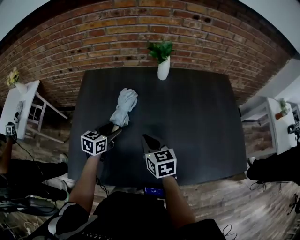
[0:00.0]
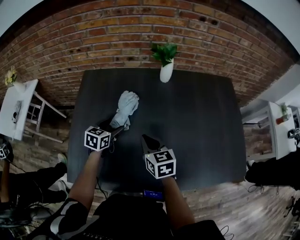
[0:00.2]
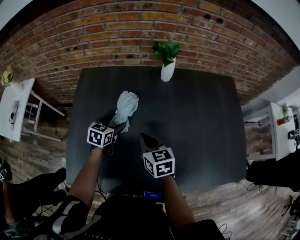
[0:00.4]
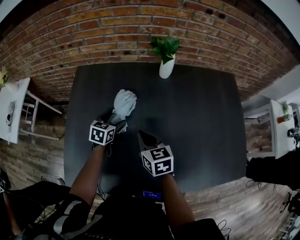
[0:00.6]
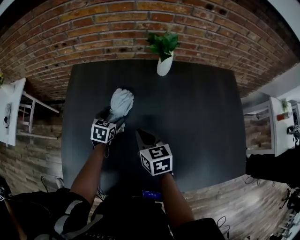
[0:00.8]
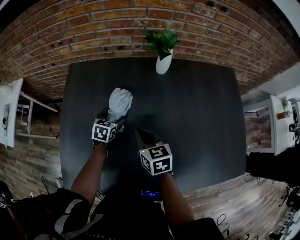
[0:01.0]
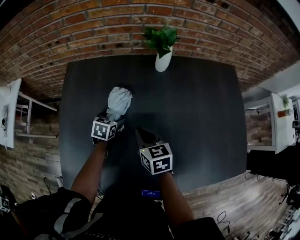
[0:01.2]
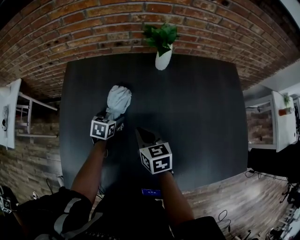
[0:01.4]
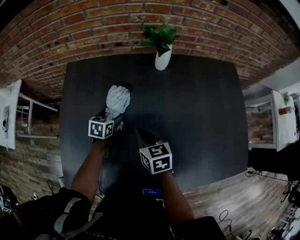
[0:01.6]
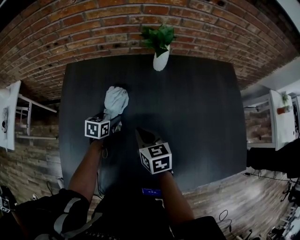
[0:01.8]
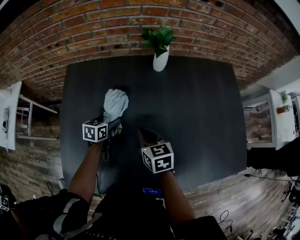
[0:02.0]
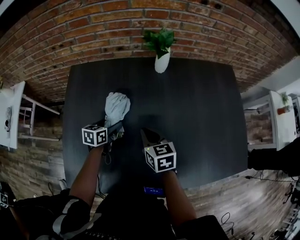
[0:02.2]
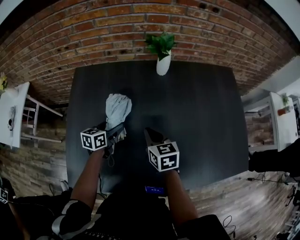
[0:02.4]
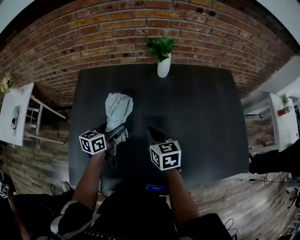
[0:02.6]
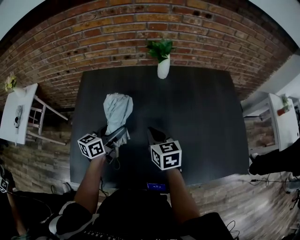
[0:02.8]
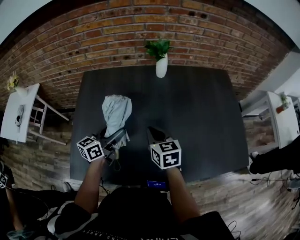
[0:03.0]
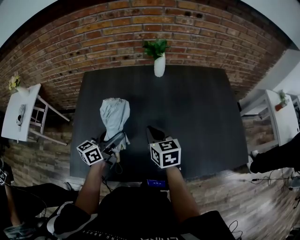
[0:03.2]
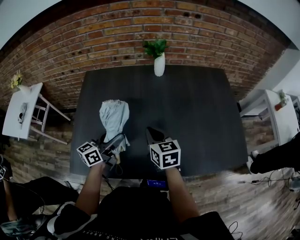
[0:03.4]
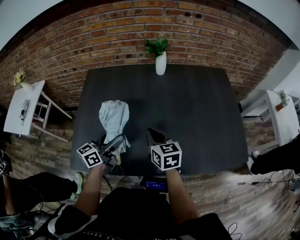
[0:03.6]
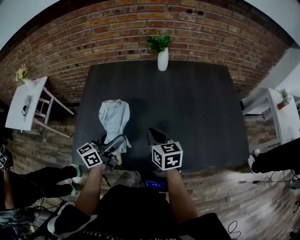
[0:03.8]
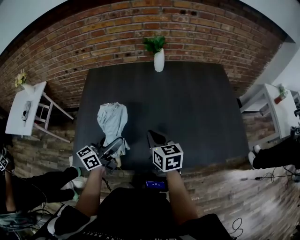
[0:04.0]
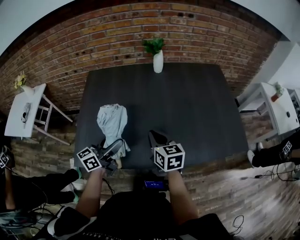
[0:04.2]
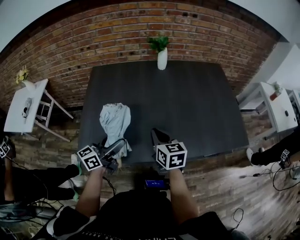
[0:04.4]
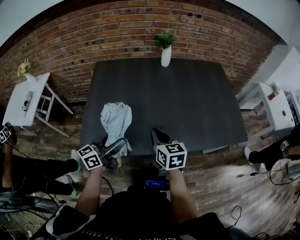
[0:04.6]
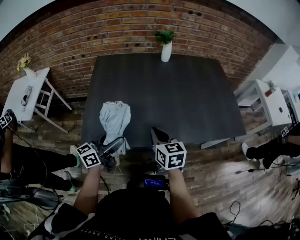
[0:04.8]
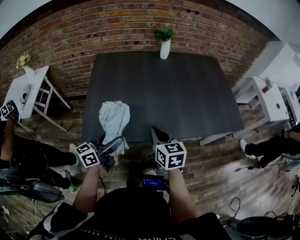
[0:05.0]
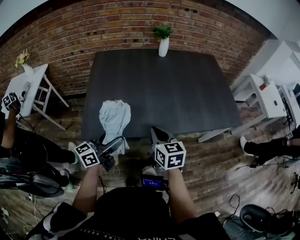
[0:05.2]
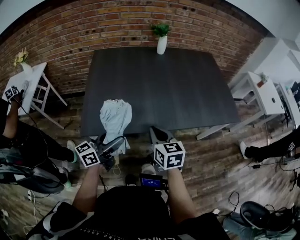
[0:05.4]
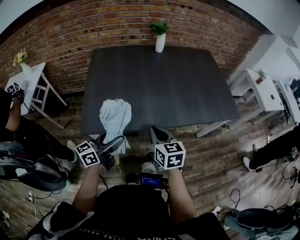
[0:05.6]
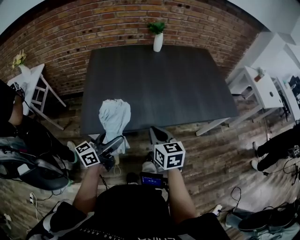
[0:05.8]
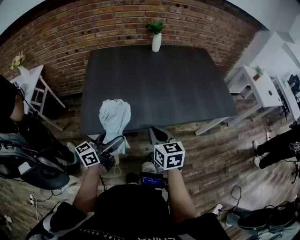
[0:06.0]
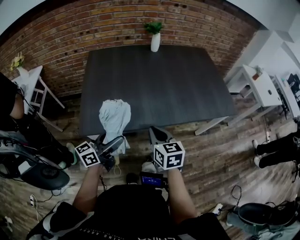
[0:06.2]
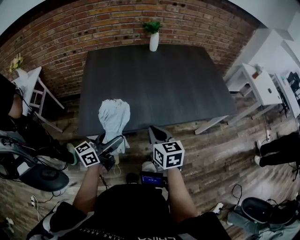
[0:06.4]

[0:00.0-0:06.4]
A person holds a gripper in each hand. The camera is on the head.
0.0 to 1.6 s: Both grippers travel together forward and downward, approximately 15 cm.
1.6 to 3.2 s: The left gripper shifts about 25 cm upward and backward, and tilts its fingers approximately 50 degrees upward. Meanwhile the right gripper shifts about 15 cm backward, upward and to the right.
3.2 to 4.8 s: Both grippers travel together backward, roughly 25 cm.
4.8 to 6.4 s: The two grippers go approximately 10 cm backward.

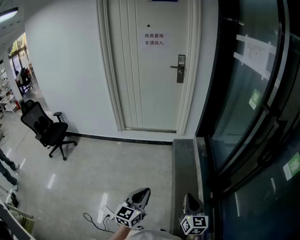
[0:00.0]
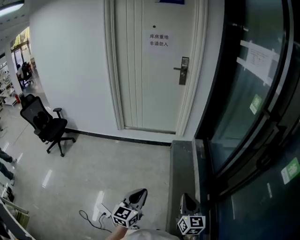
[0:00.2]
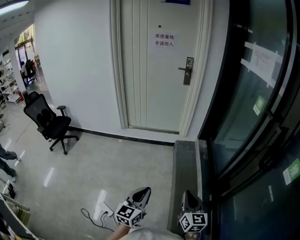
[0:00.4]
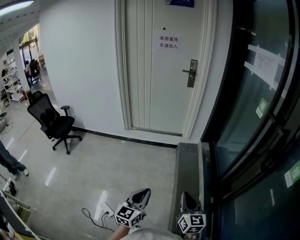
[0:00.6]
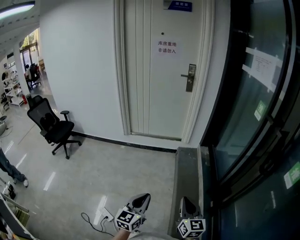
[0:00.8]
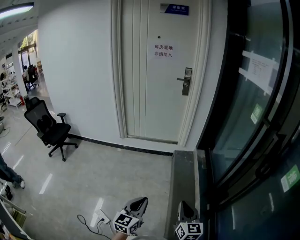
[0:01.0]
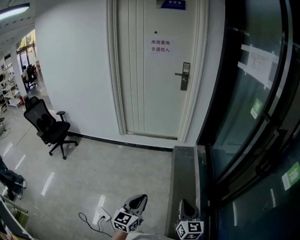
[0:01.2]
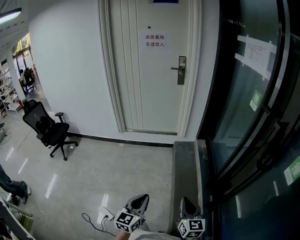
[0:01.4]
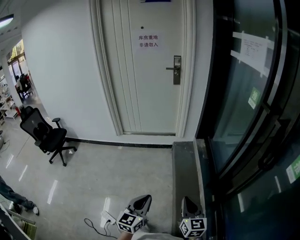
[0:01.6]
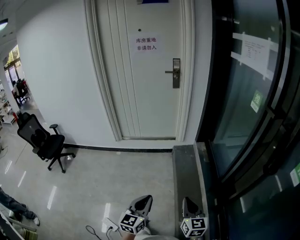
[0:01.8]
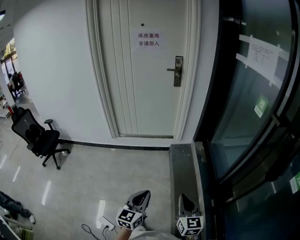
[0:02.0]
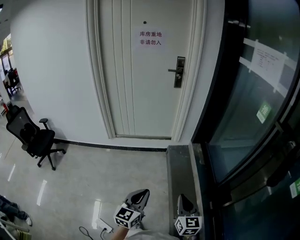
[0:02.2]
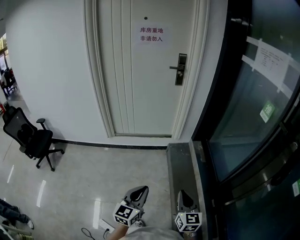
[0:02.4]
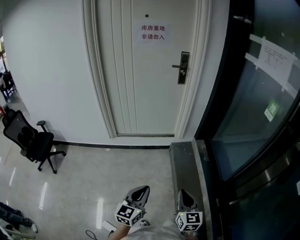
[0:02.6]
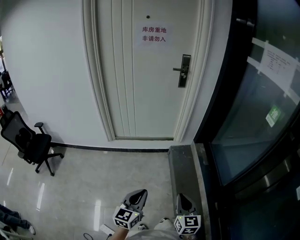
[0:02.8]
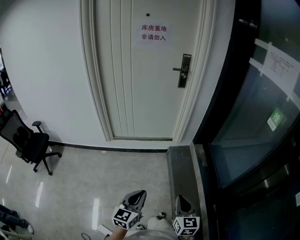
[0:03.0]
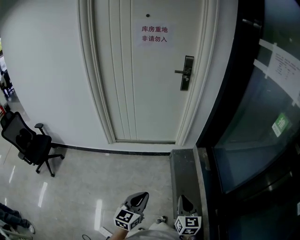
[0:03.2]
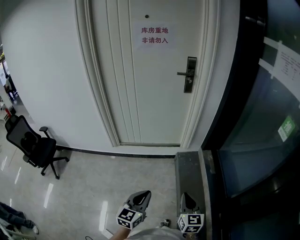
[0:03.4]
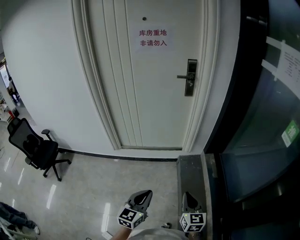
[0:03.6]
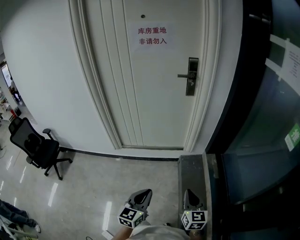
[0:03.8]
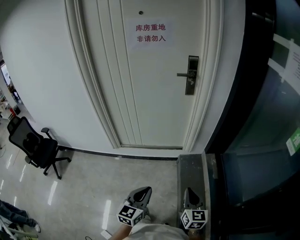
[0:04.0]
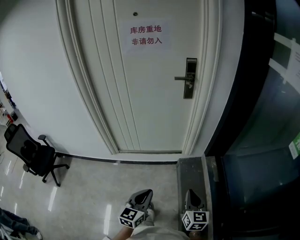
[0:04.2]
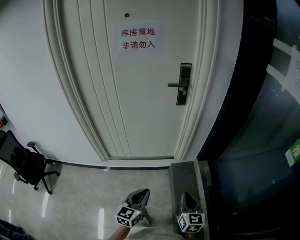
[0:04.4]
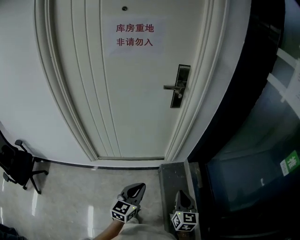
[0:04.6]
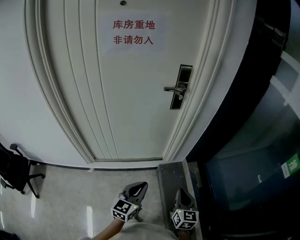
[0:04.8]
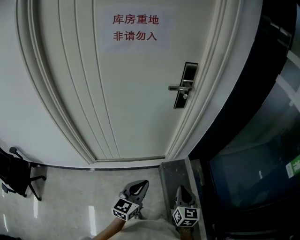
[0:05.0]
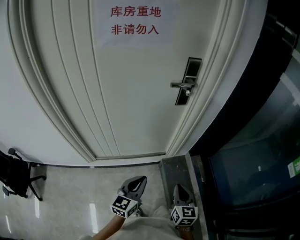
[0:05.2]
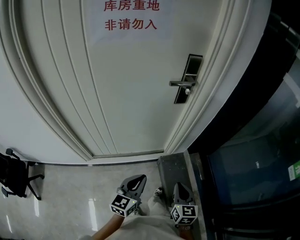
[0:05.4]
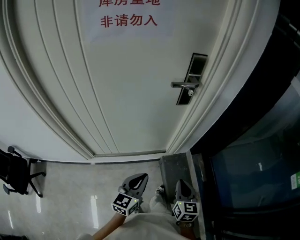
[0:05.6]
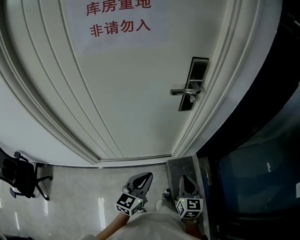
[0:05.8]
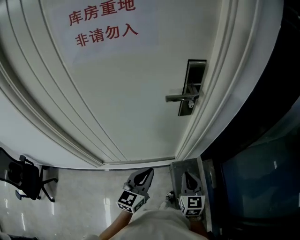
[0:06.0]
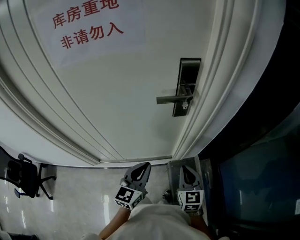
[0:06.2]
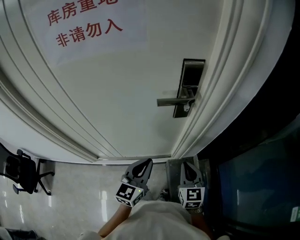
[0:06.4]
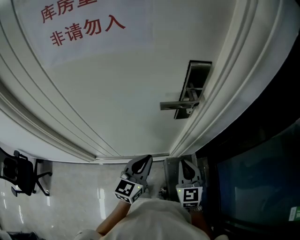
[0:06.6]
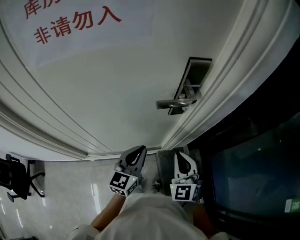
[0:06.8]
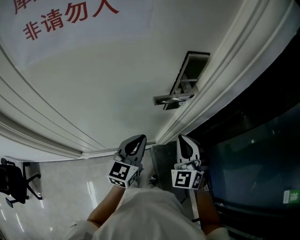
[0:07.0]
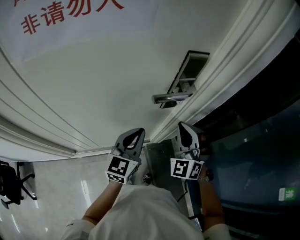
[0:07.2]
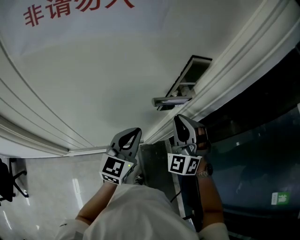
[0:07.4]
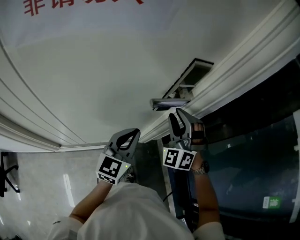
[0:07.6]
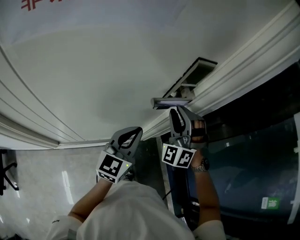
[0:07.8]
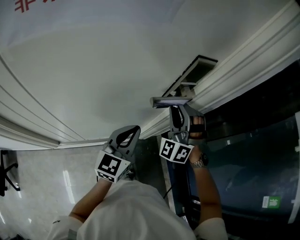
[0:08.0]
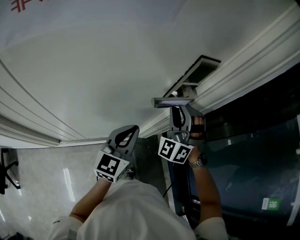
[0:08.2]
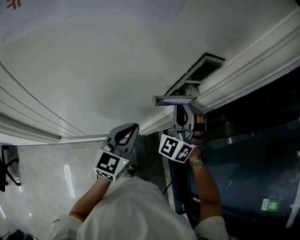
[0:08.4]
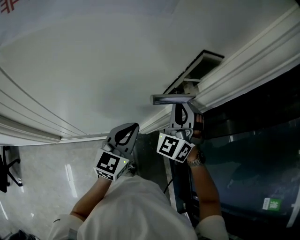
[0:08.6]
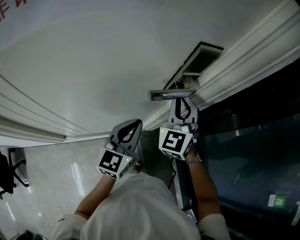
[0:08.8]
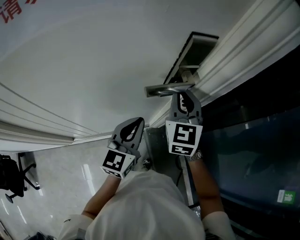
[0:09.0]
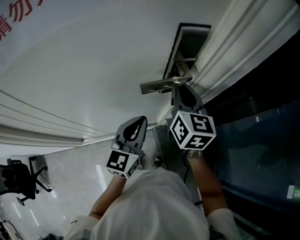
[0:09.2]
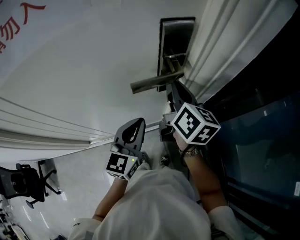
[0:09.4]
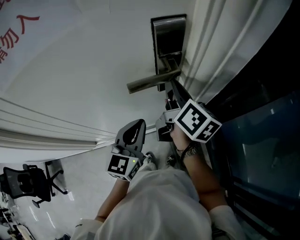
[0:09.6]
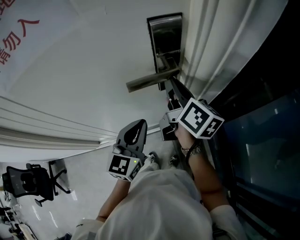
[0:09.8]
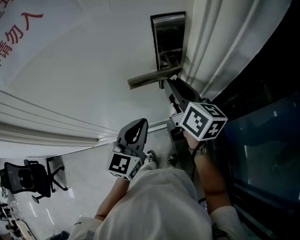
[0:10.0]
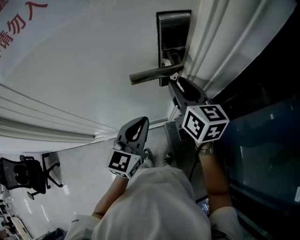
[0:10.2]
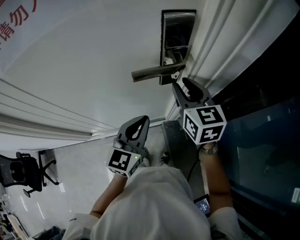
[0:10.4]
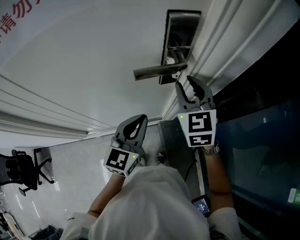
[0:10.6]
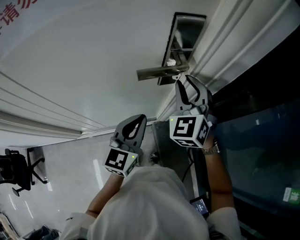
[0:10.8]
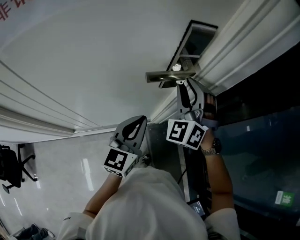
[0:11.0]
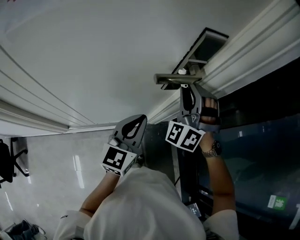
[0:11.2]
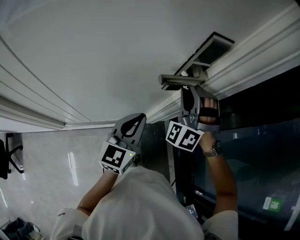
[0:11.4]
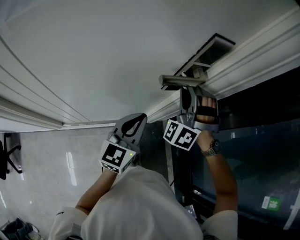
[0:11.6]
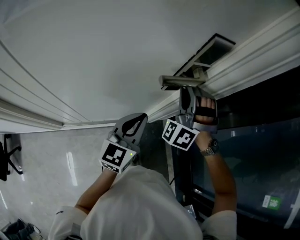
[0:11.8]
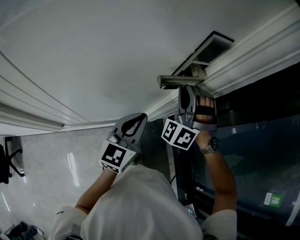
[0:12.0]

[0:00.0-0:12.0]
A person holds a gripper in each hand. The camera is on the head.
0.0 to 1.6 s: The grippers stay close to where they were, moving slightly.
1.6 to 3.0 s: The two grippers go roughly 30 cm forward and to the left.
3.0 to 4.4 s: Both grippers travel together forward, approximately 30 cm.
4.4 to 6.0 s: The two grippers go some 35 cm forward.
6.0 to 7.6 s: The right gripper goes about 25 cm forward and upward, rolls counterclockwise, seen from behind, by roughly 70 degrees, and opens up, while the left gripper travels forward by approximately 20 cm.
7.6 to 9.0 s: The right gripper twists roughly 60 degrees clockwise, seen from behind, and closes up.
9.0 to 10.4 s: The right gripper rotates about 30 degrees, and opens up.
10.4 to 12.0 s: The right gripper twists some 90 degrees counterclockwise, seen from behind.

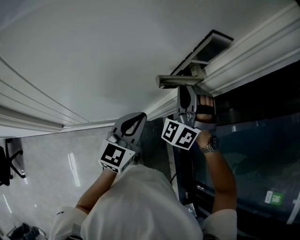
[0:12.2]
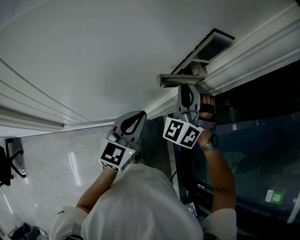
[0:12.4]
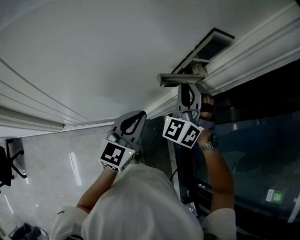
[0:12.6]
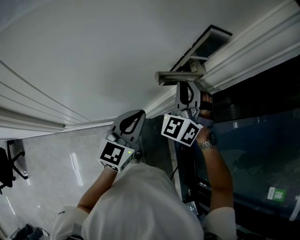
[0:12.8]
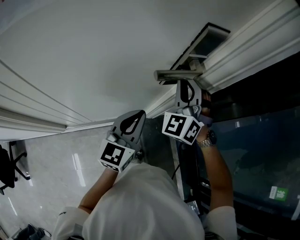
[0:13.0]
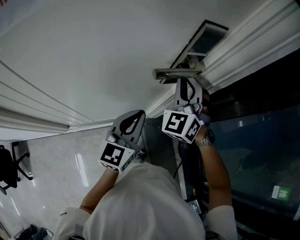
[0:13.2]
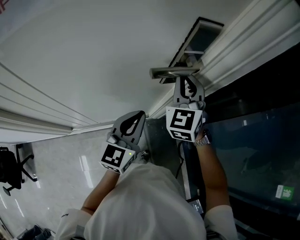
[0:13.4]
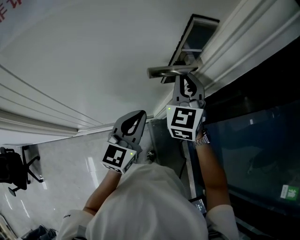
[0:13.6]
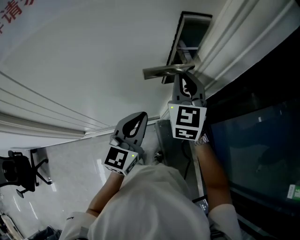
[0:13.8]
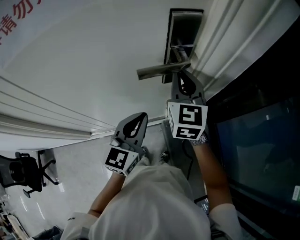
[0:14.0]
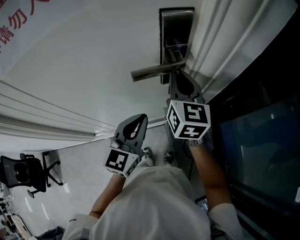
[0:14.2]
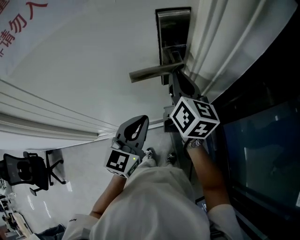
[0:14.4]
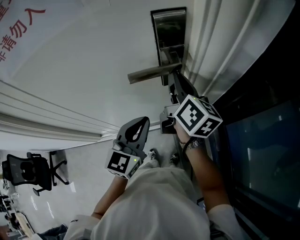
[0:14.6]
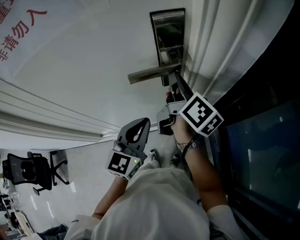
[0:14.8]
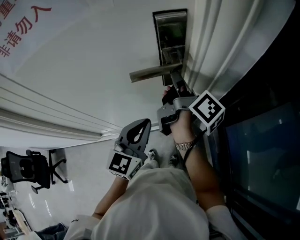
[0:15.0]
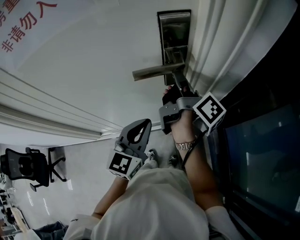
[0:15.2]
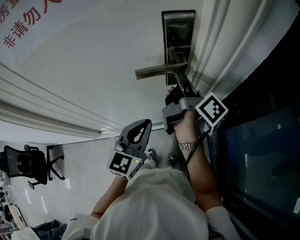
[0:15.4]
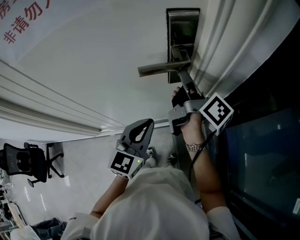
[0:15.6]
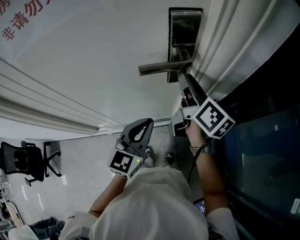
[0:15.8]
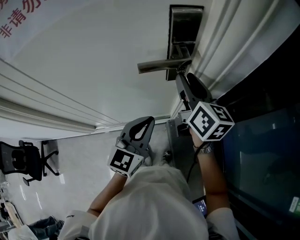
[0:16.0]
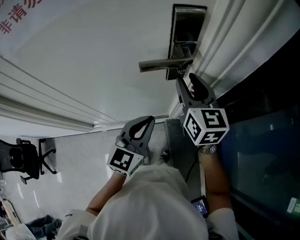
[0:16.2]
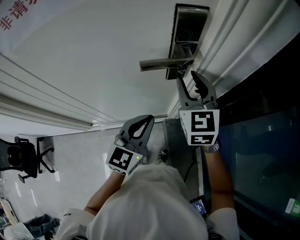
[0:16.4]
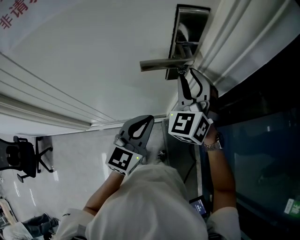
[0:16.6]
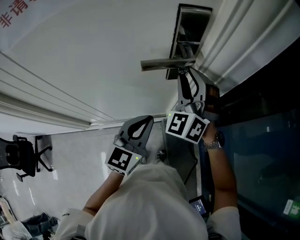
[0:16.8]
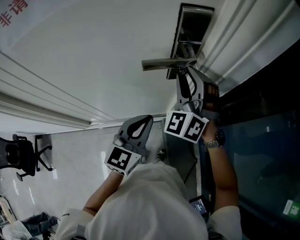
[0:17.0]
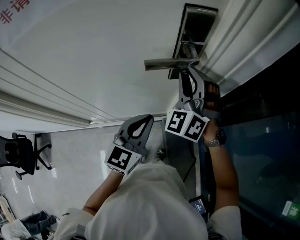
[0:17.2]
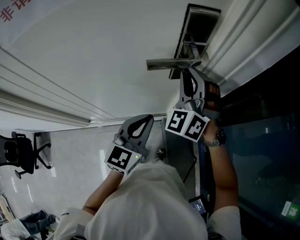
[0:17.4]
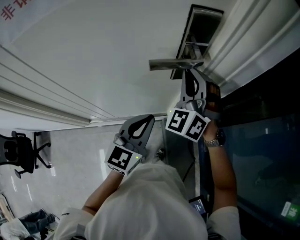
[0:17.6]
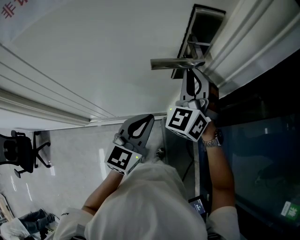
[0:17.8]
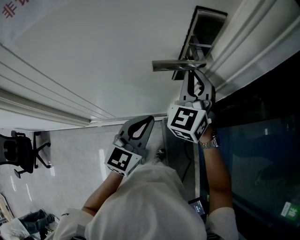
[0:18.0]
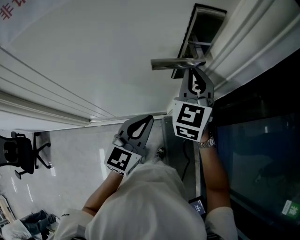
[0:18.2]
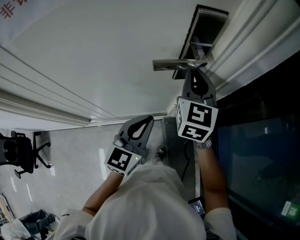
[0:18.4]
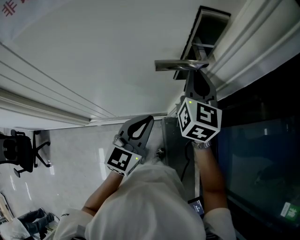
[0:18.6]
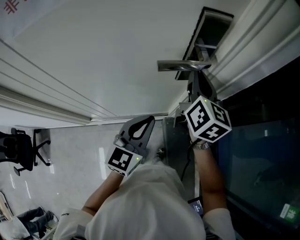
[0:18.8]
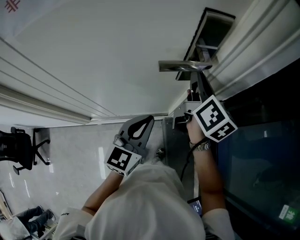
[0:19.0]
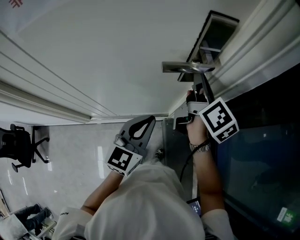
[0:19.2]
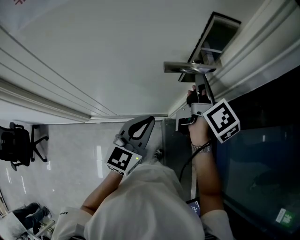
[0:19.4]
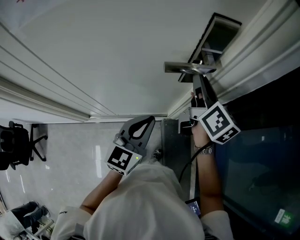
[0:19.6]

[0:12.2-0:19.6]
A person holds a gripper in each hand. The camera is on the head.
12.2 to 13.6 s: The right gripper rotates around the line of its fingers by some 50 degrees, clockwise from behind.
13.6 to 15.2 s: The right gripper twists some 110 degrees clockwise, seen from behind.
15.2 to 16.6 s: The right gripper rolls counterclockwise, seen from behind, by roughly 130 degrees, and opens its fingers.
16.6 to 18.2 s: The right gripper rotates about 30 degrees, and closes up.
18.2 to 19.6 s: The right gripper rolls clockwise, seen from behind, by roughly 60 degrees.
